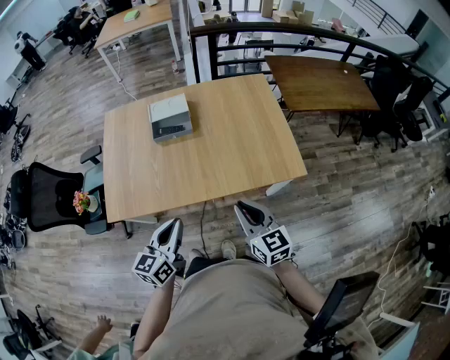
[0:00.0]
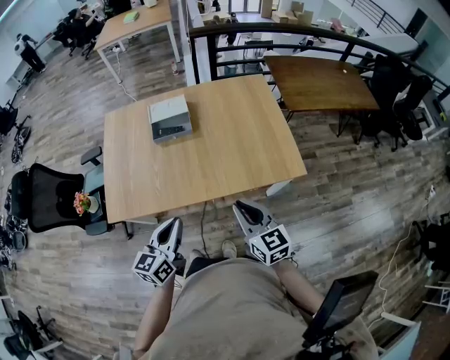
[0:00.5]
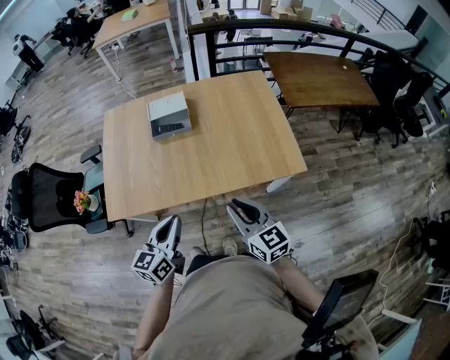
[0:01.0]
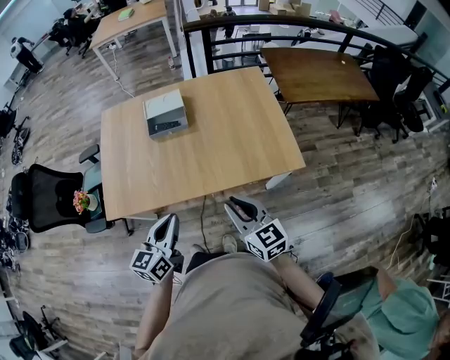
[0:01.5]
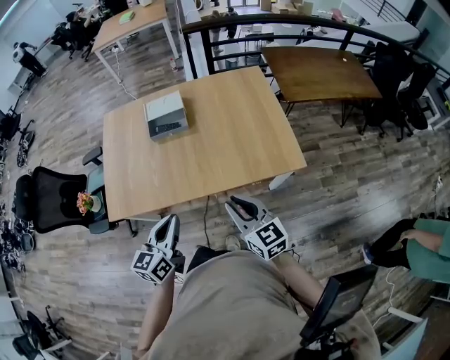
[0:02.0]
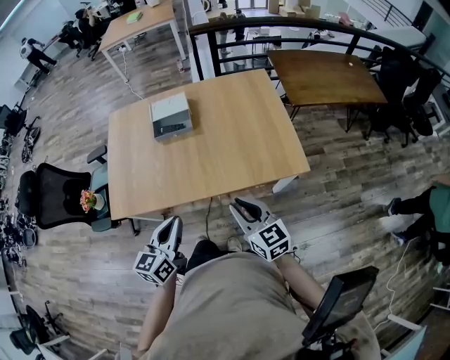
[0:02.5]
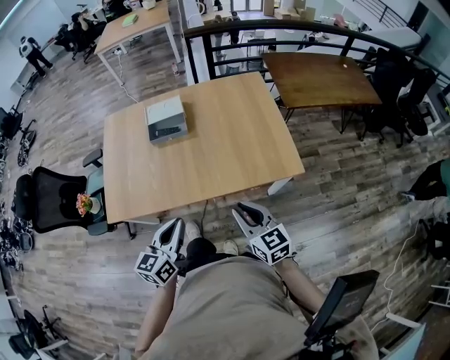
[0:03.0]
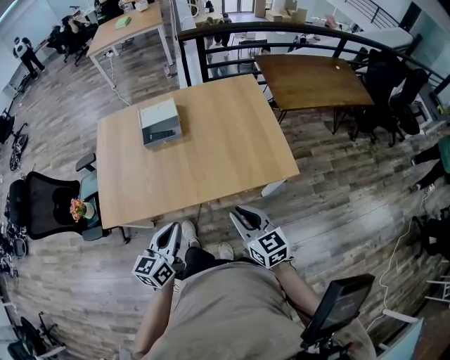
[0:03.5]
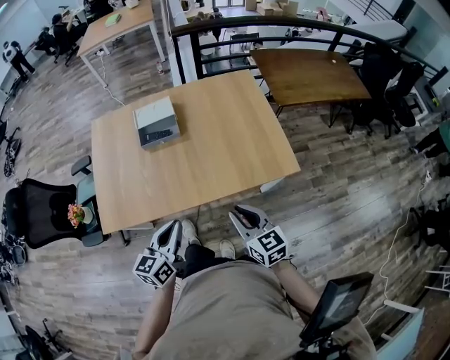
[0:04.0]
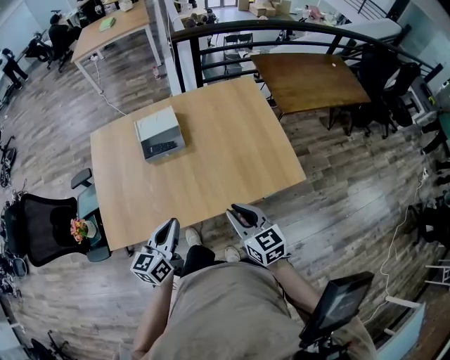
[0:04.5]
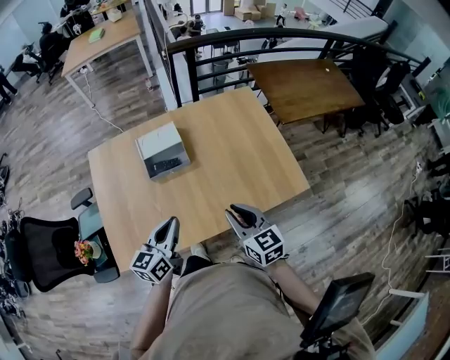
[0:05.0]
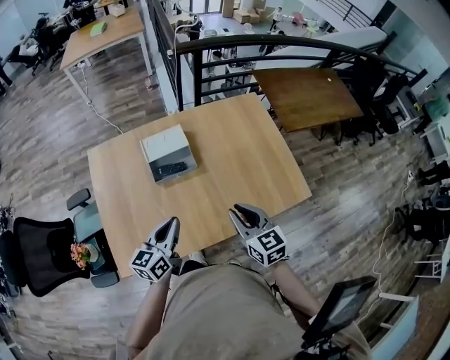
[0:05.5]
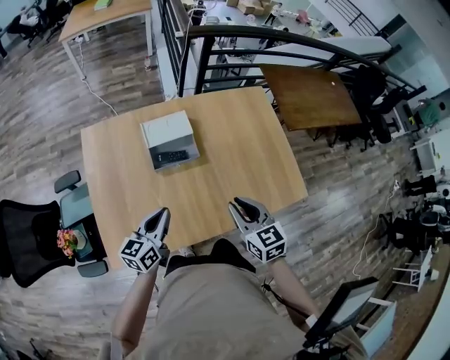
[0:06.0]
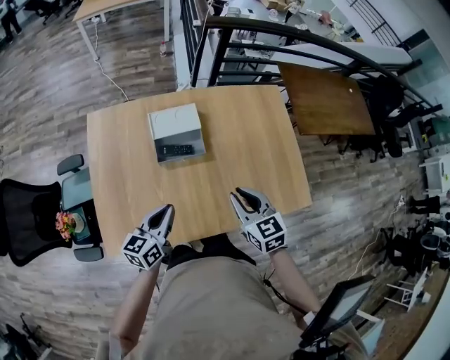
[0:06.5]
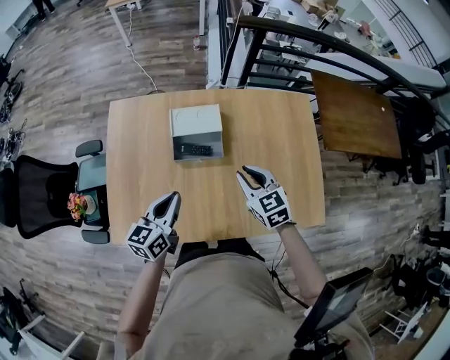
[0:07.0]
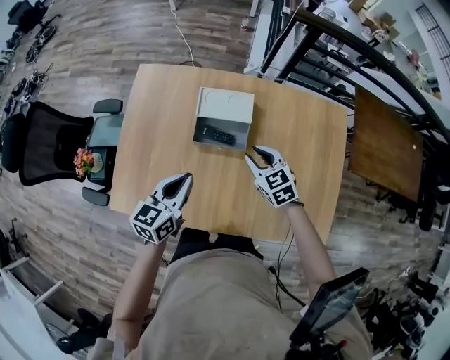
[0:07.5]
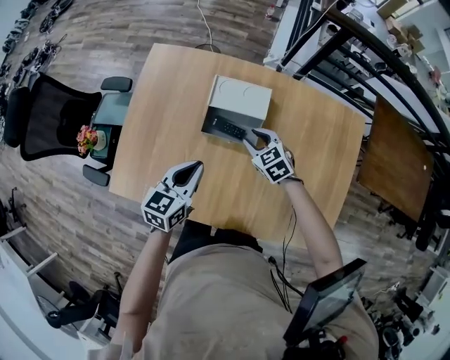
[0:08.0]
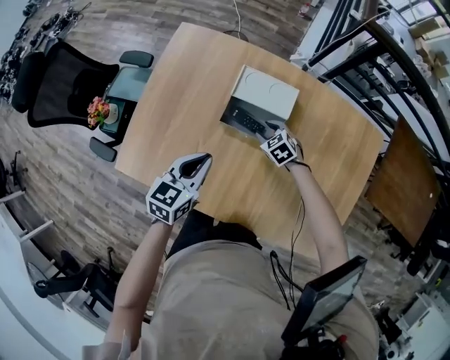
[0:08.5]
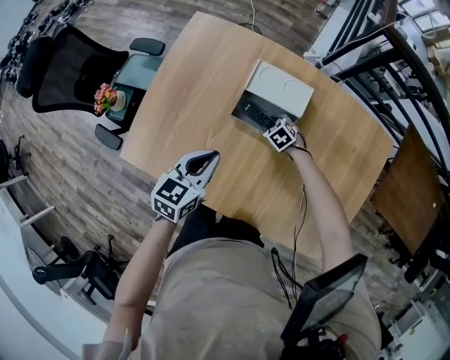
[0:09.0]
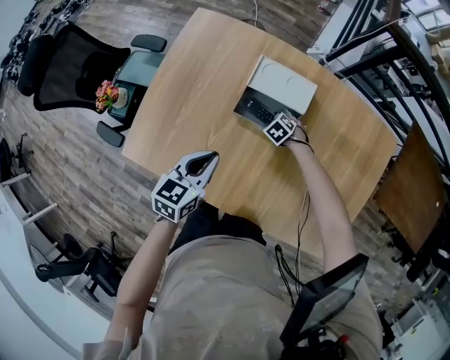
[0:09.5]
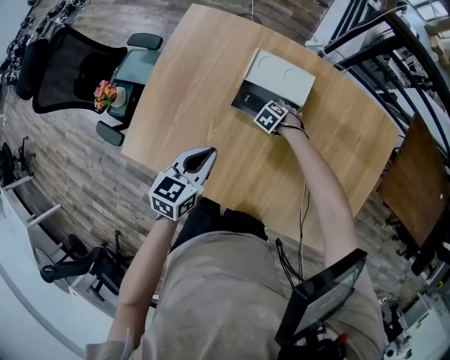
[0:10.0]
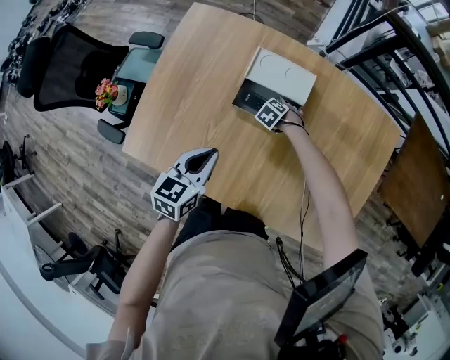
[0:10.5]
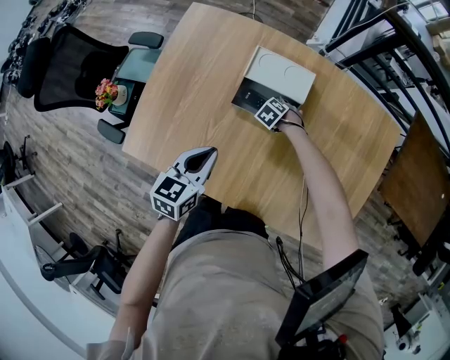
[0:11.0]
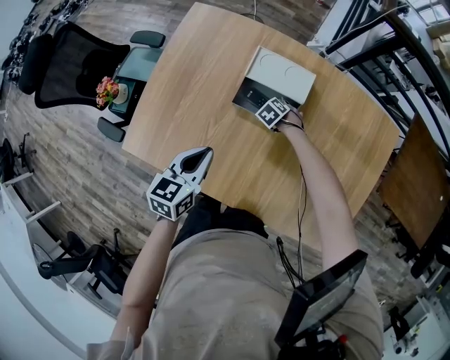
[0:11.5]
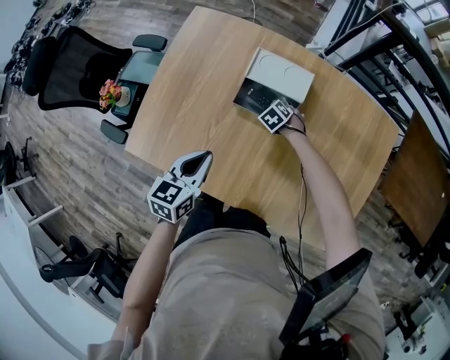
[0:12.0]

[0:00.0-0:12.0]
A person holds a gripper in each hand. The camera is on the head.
0:00.0 to 0:04.0: The grippers move only a little.
0:04.0 to 0:06.0: The two grippers go roughly 30 cm forward and to the left.
0:06.0 to 0:08.0: The right gripper moves roughly 35 cm, and turns by about 50 degrees. Meanwhile the left gripper ends up roughly 15 cm from where it was, and changes its angle by approximately 30 degrees.
0:08.0 to 0:10.0: The right gripper heads downward, covering approximately 20 cm, and tilts its fingers some 30 degrees downward, while the left gripper shifts by roughly 5 cm.
0:10.0 to 0:12.0: There are only small adjustments of the grippers.

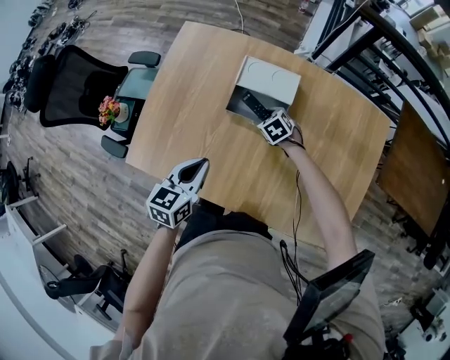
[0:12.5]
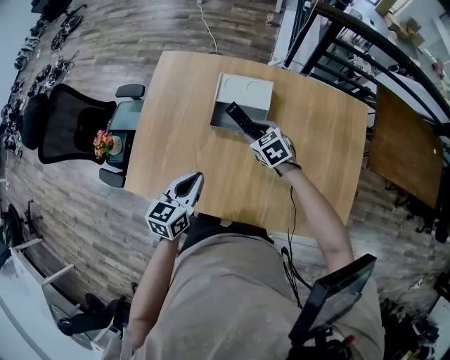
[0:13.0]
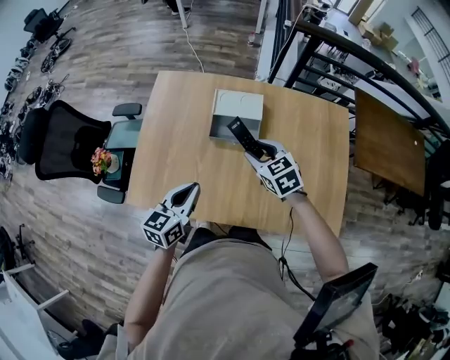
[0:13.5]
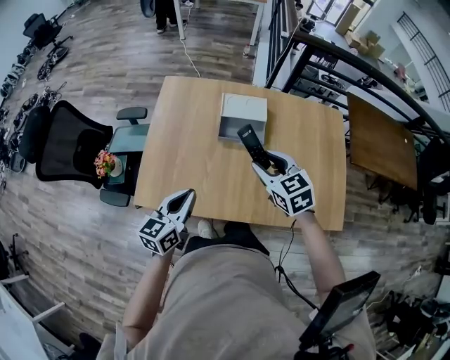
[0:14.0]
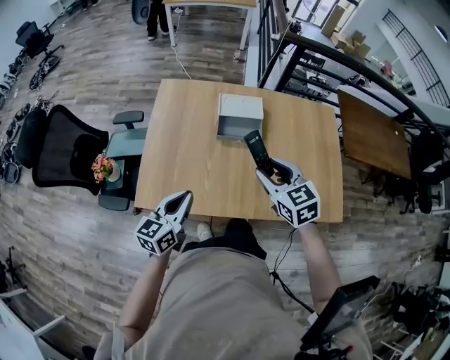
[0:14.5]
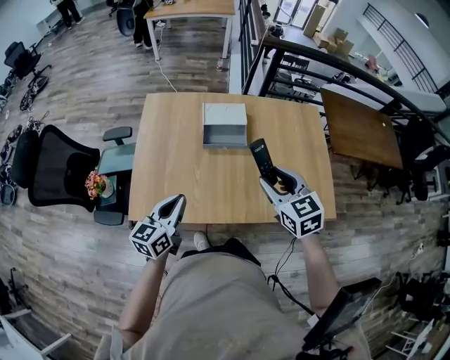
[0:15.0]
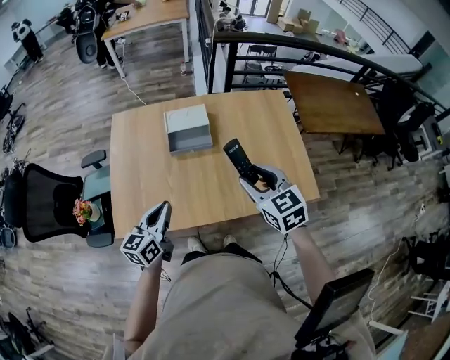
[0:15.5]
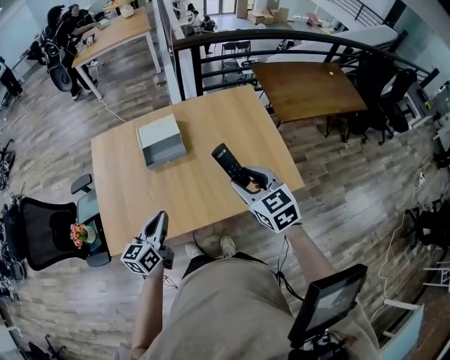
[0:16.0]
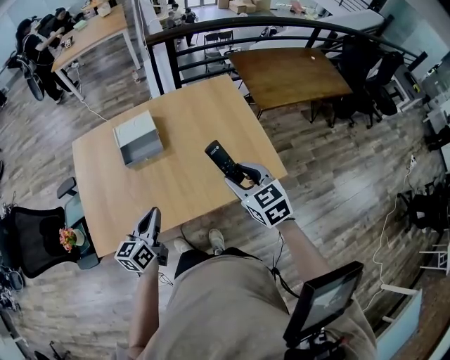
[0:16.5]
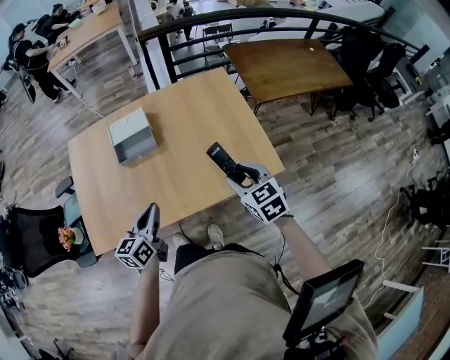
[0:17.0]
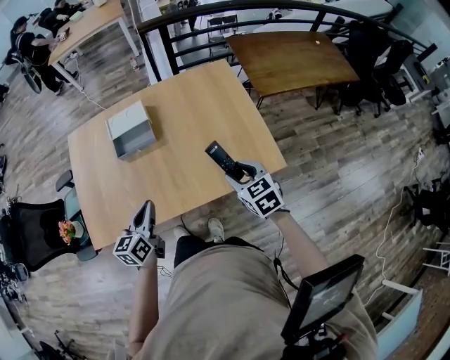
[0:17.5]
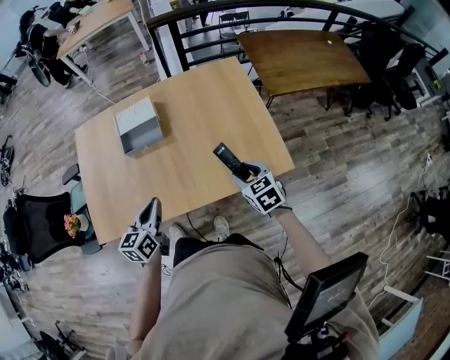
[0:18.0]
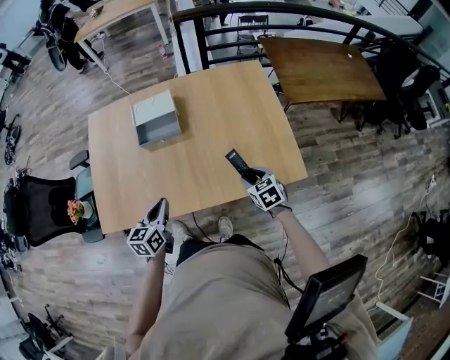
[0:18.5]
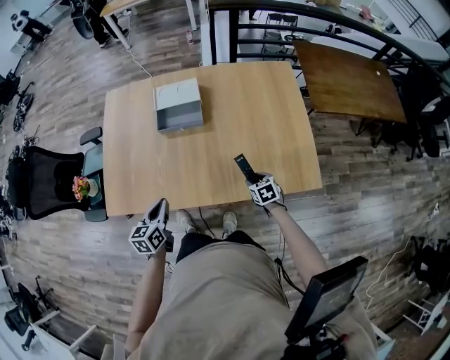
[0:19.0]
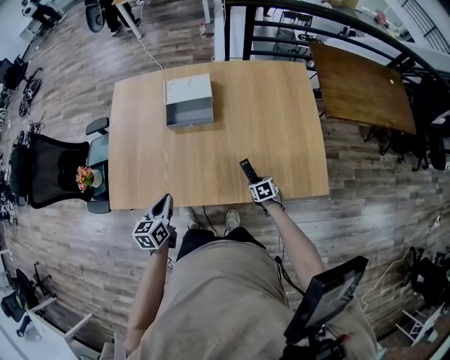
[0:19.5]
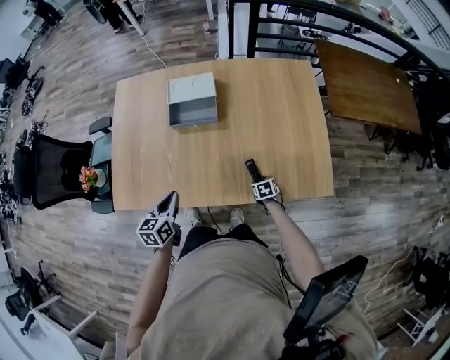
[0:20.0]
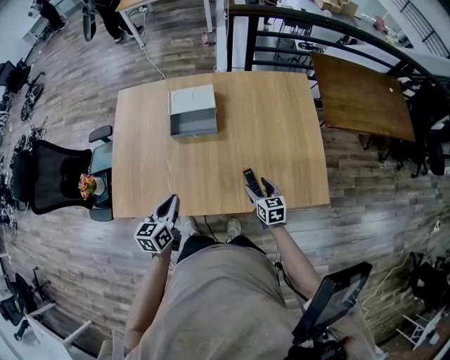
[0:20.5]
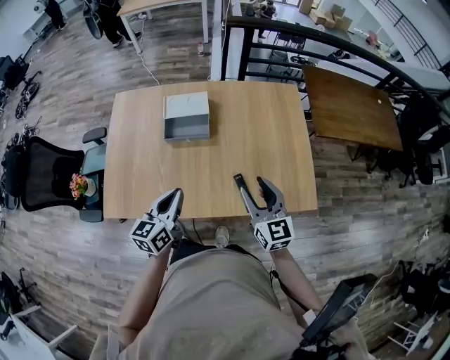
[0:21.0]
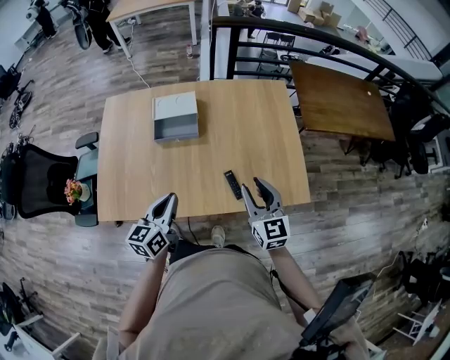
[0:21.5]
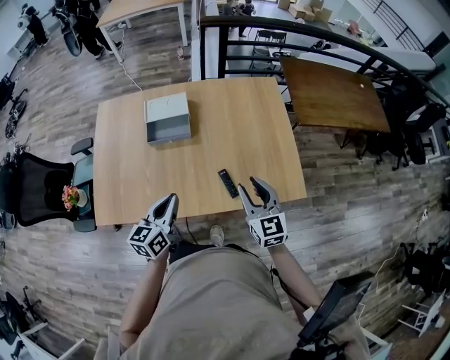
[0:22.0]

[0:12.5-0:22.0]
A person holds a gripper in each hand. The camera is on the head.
0:12.5 to 0:14.5: The left gripper is displaced to the left, backward and upward by about 20 cm, and turns by approximately 20 degrees. Meanwhile the right gripper shifts some 40 cm upward and backward, and tilts its fingers about 30 degrees upward.
0:14.5 to 0:16.5: Both grippers travel together to the right, roughly 25 cm.
0:16.5 to 0:18.0: The left gripper shifts by some 5 cm, while the right gripper travels downward and to the right by about 15 cm.
0:18.0 to 0:20.0: The right gripper moves downward, approximately 30 cm, and rotates approximately 30 degrees, while the left gripper goes approximately 15 cm to the left and downward.
0:20.0 to 0:22.0: The right gripper is displaced upward by roughly 40 cm, and tilts its fingers some 50 degrees upward, while the left gripper heads upward and to the right, covering approximately 15 cm.

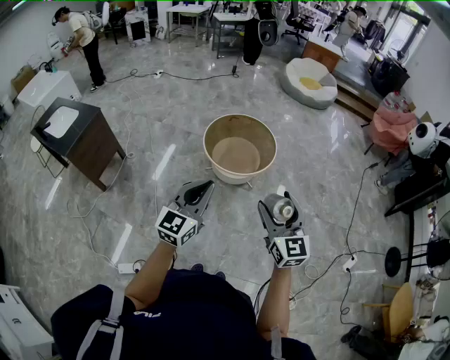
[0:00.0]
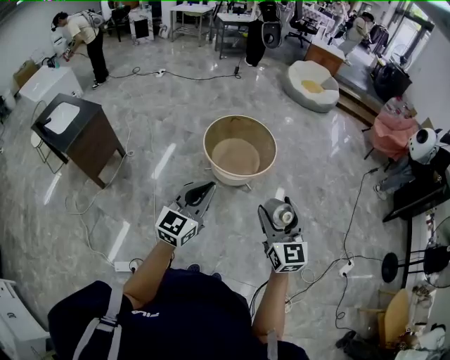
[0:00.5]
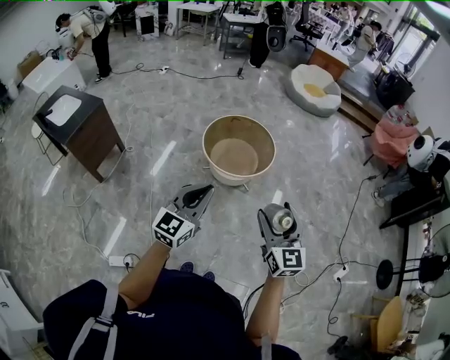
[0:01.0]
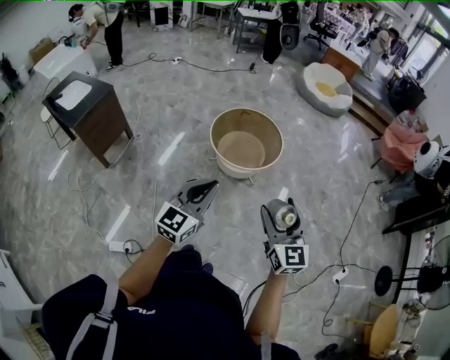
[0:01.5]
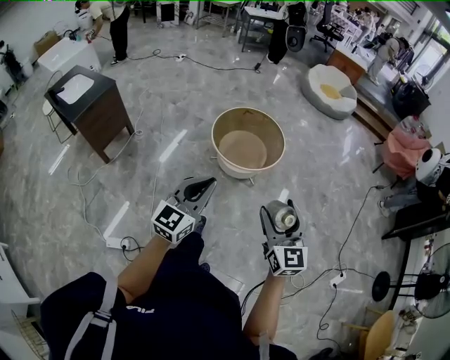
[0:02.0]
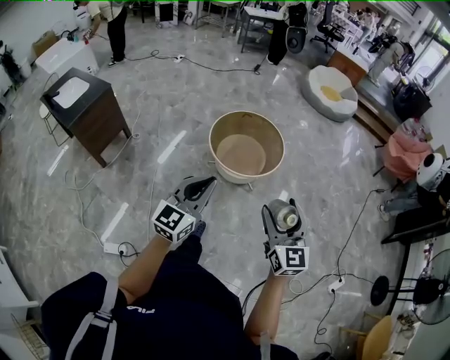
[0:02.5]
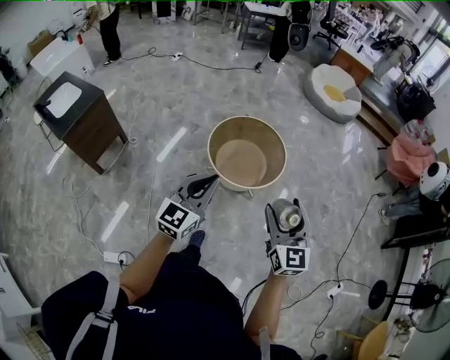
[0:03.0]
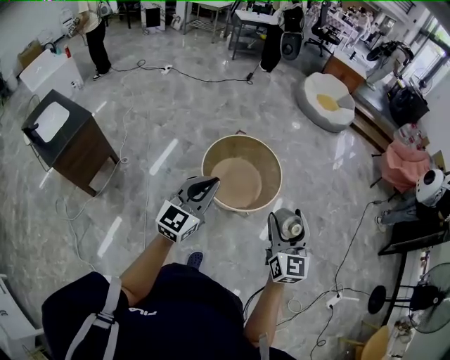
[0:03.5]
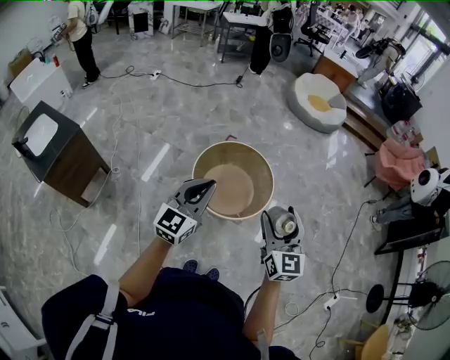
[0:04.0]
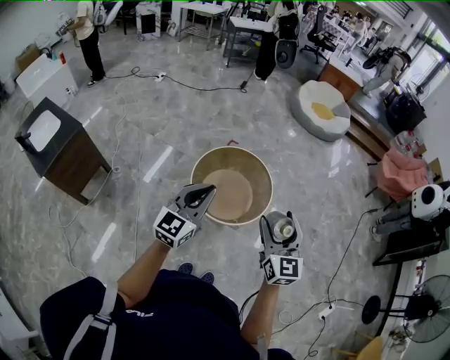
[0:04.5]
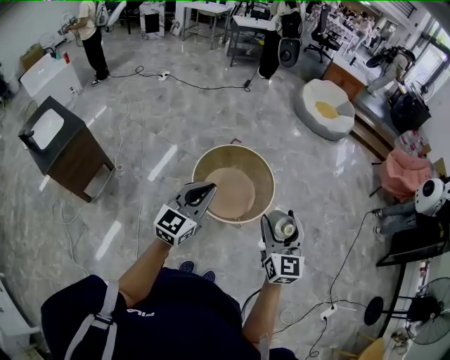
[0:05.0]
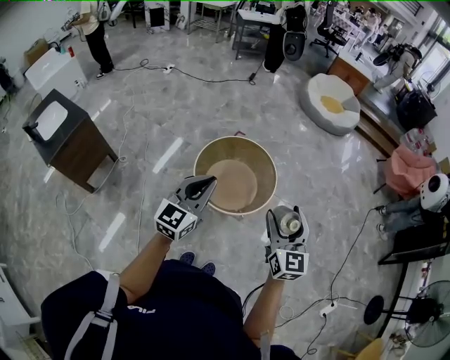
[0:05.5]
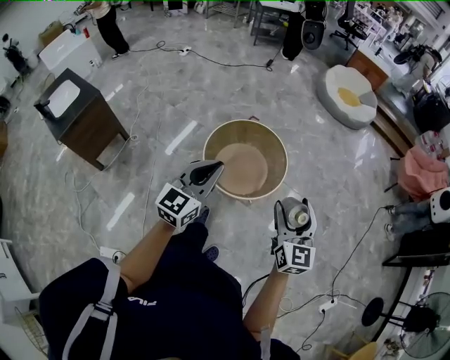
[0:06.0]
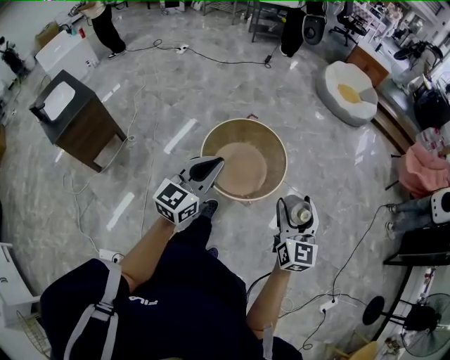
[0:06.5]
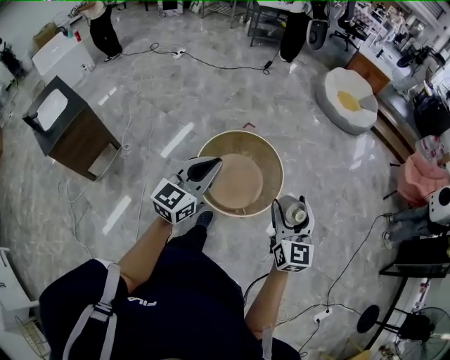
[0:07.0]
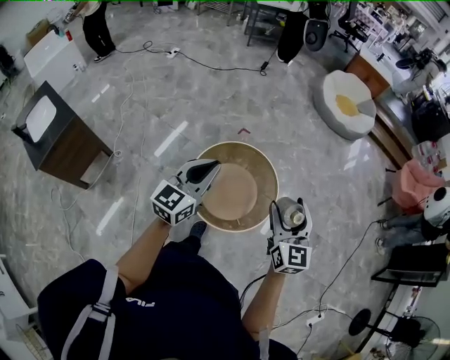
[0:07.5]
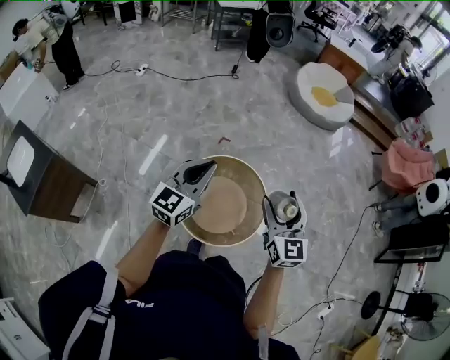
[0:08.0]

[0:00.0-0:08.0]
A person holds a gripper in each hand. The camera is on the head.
0:00.0 to 0:02.0: The right gripper ends up roughly 5 cm from where it was.
0:02.0 to 0:04.0: Both grippers travel together forward, approximately 35 cm.
0:04.0 to 0:06.0: The grippers both shift to the right by roughly 10 cm.
0:06.0 to 0:08.0: Both grippers travel together forward, some 35 cm.
